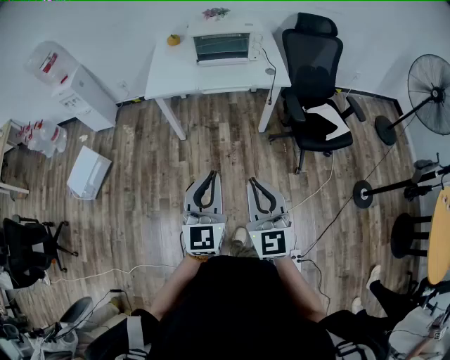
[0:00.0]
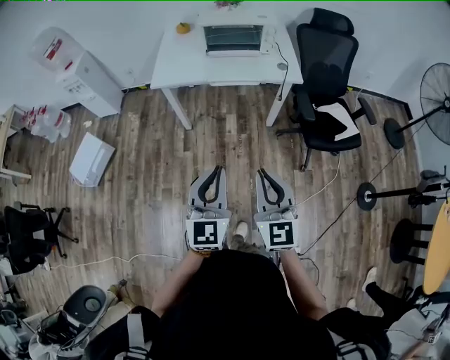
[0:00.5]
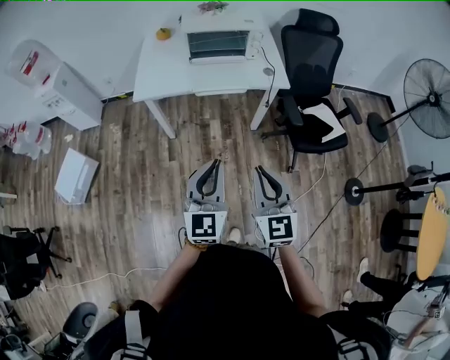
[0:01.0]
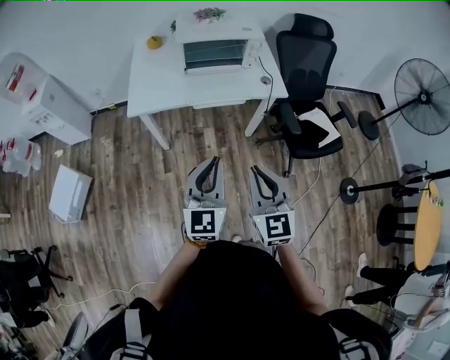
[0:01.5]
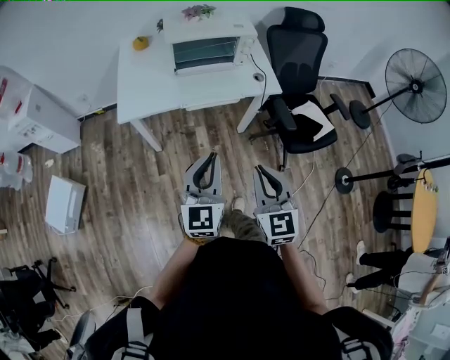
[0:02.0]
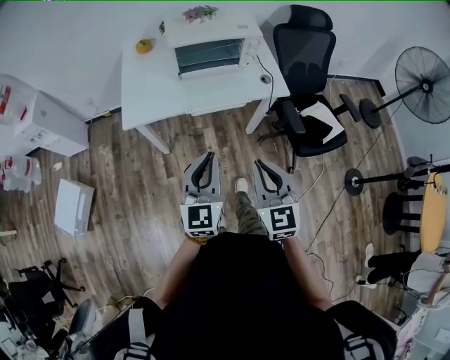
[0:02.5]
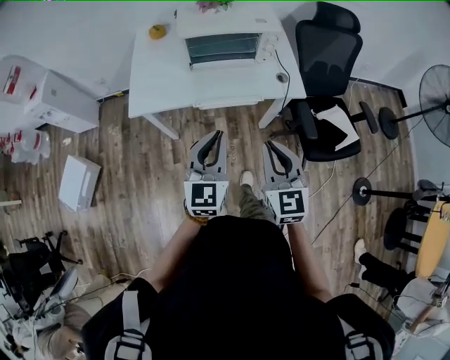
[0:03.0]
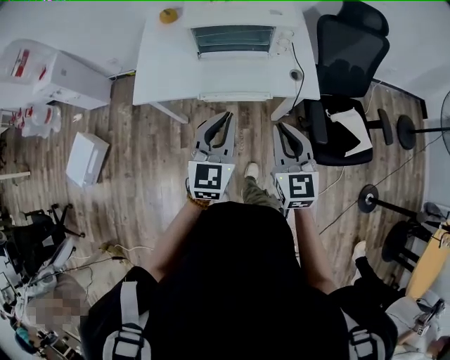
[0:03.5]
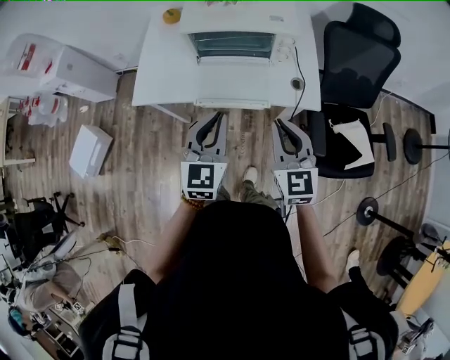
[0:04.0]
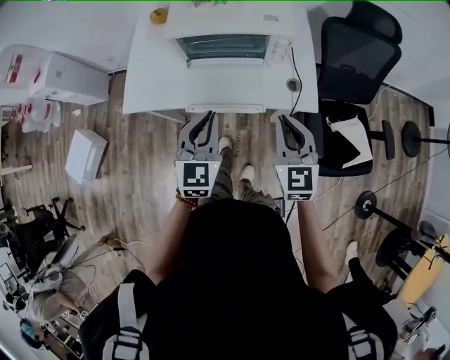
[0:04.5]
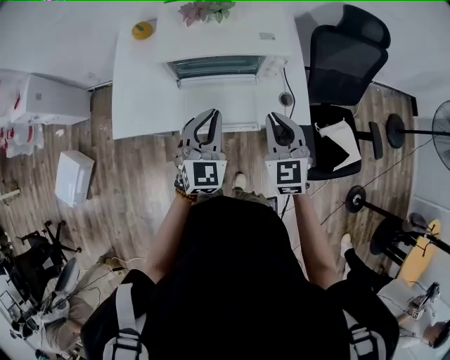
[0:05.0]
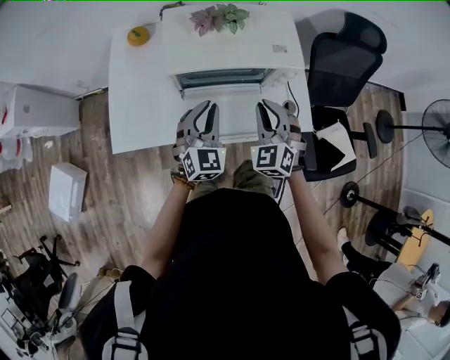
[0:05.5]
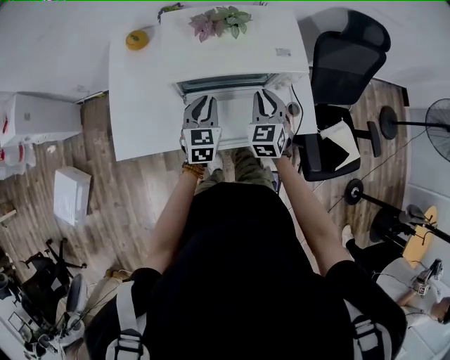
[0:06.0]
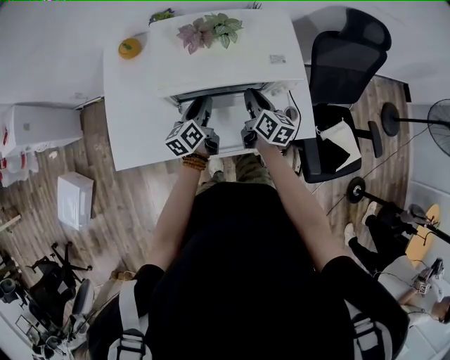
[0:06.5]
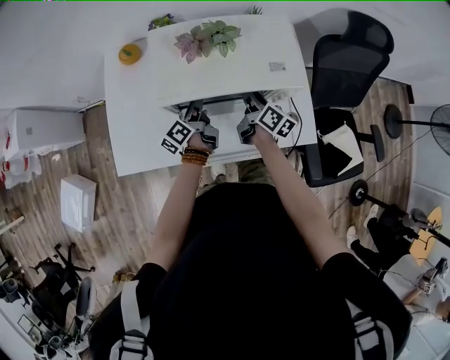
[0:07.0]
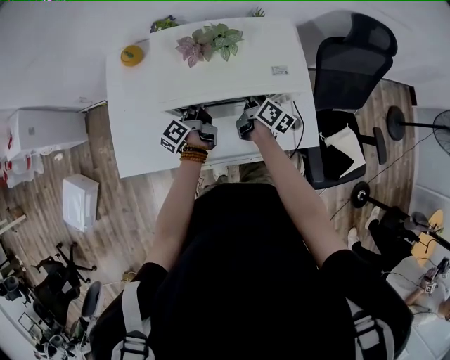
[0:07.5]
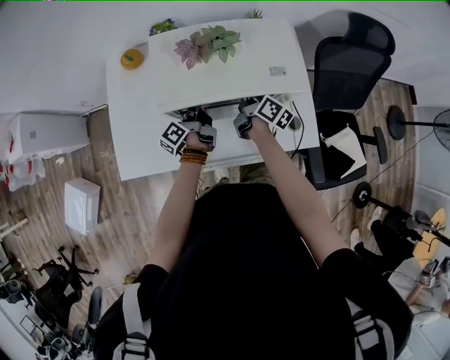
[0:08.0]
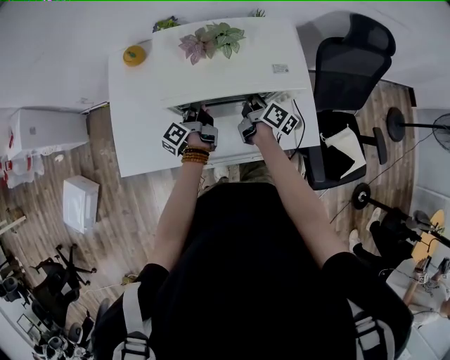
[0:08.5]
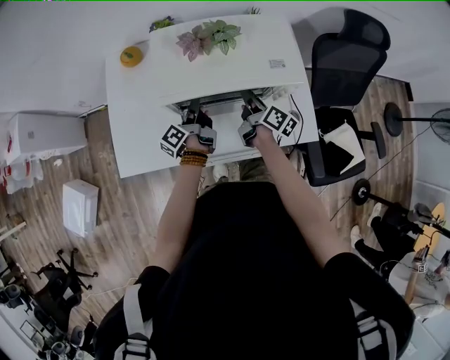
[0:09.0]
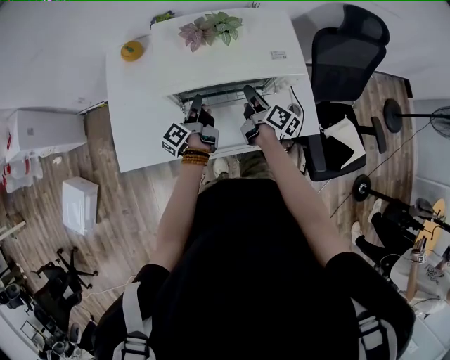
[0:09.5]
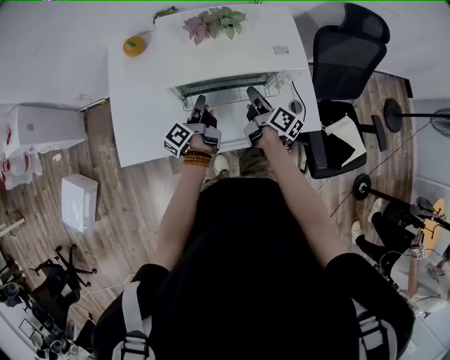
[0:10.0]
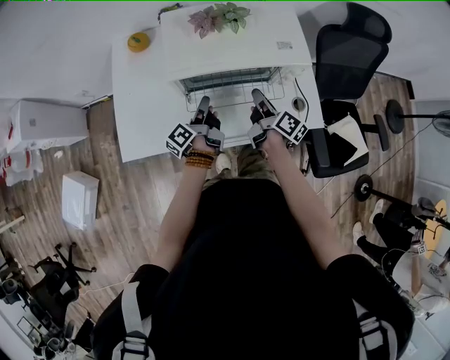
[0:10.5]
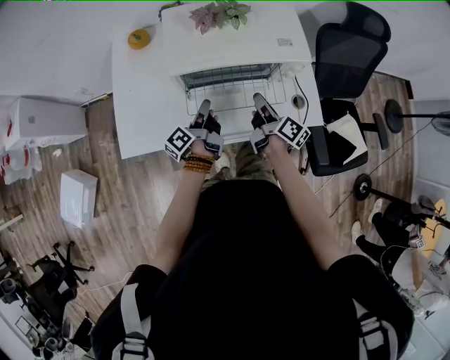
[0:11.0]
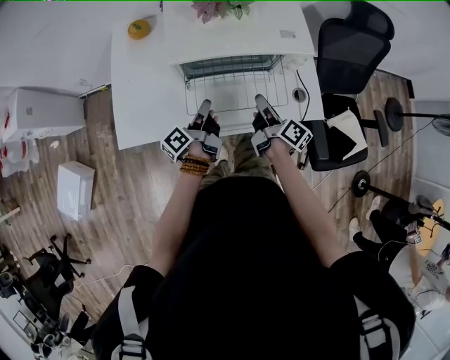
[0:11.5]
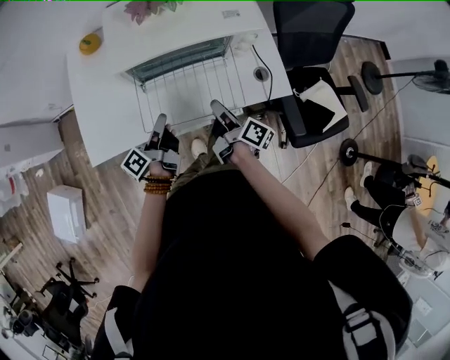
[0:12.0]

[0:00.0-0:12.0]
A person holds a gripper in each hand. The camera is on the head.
0:00.0 to 0:02.0: The grippers both shift forward by approximately 25 cm.
0:02.0 to 0:04.0: Both grippers move forward and to the right, some 30 cm.
0:04.0 to 0:06.0: The two grippers go about 30 cm forward and downward. The right gripper swivels about 30 degrees.
0:06.0 to 0:08.0: The grippers both shift forward and downward by approximately 15 cm. The right gripper rotates around the line of its fingers by about 80 degrees, clockwise from behind. Meanwhile the left gripper rotates around the line of its fingers by about 80 degrees, counterclockwise from behind.
0:08.0 to 0:10.0: Both grippers travel together backward, some 10 cm.
0:10.0 to 0:12.0: The two grippers go some 15 cm backward.

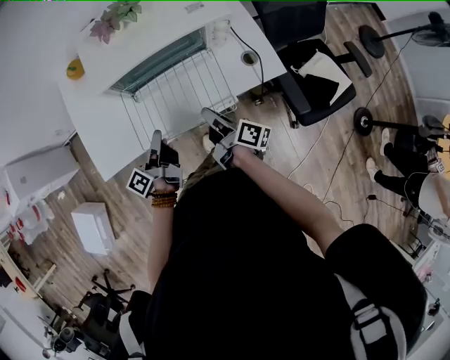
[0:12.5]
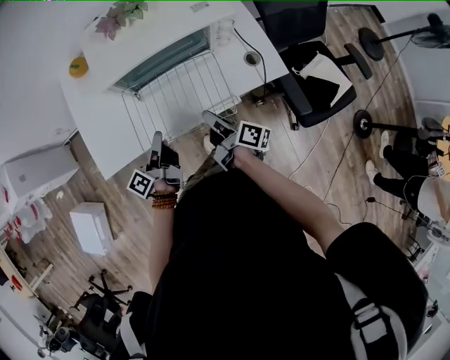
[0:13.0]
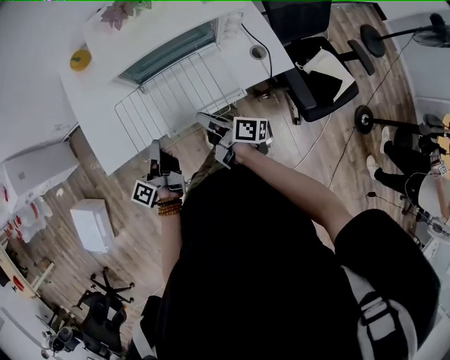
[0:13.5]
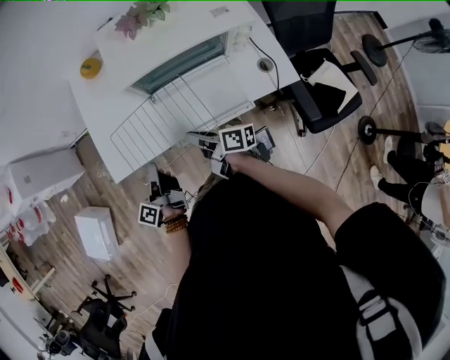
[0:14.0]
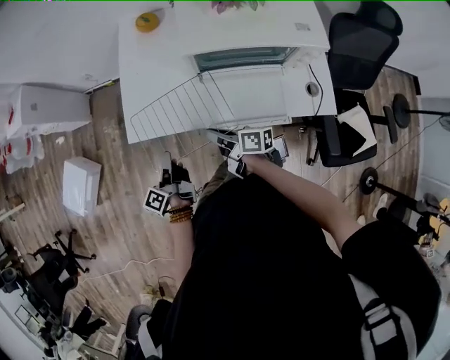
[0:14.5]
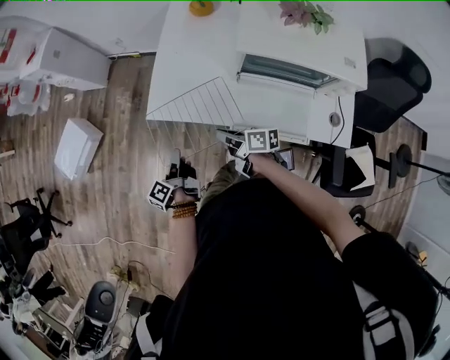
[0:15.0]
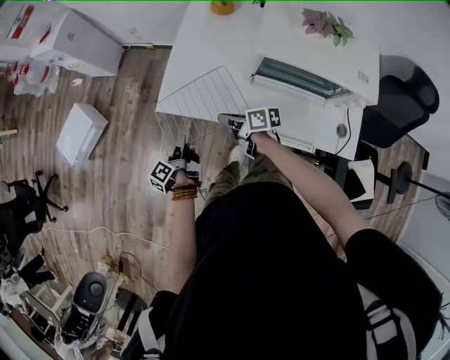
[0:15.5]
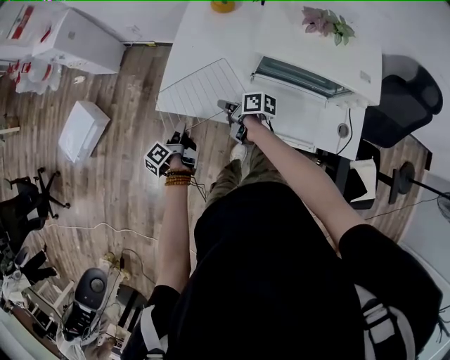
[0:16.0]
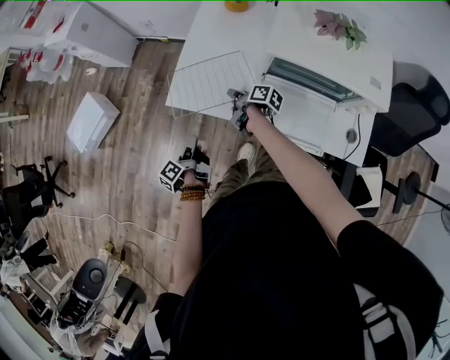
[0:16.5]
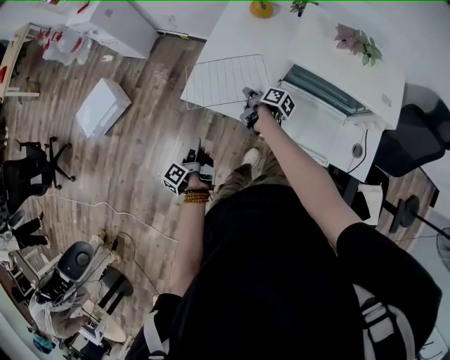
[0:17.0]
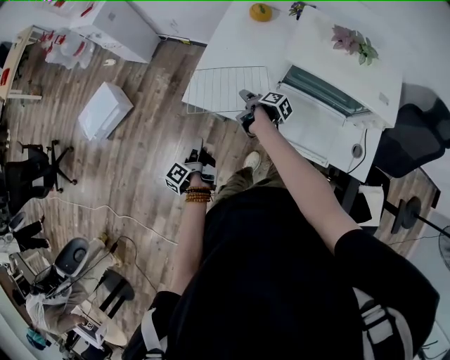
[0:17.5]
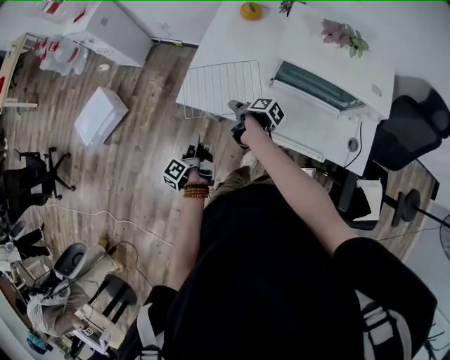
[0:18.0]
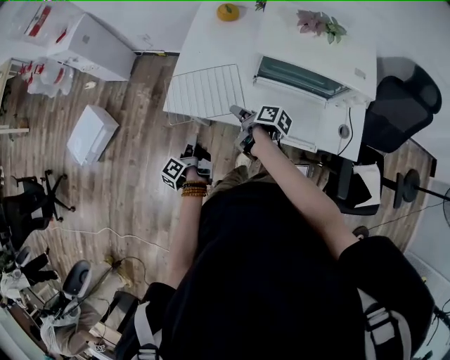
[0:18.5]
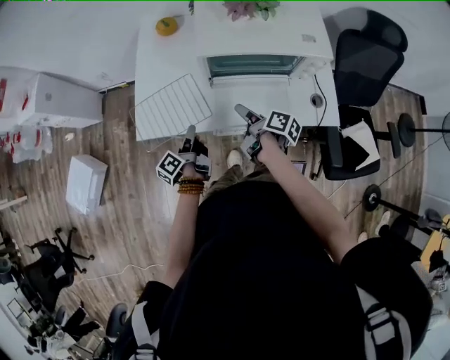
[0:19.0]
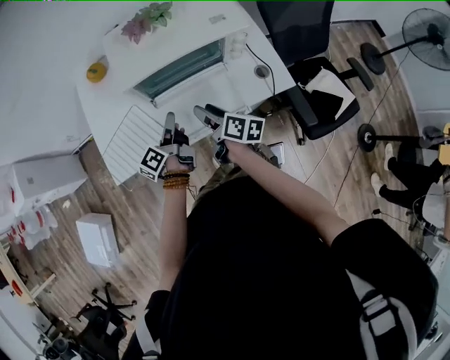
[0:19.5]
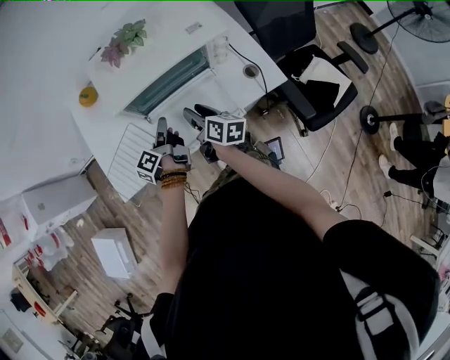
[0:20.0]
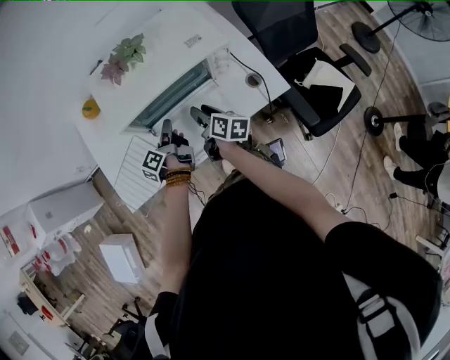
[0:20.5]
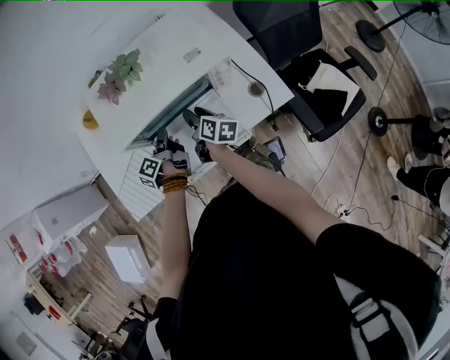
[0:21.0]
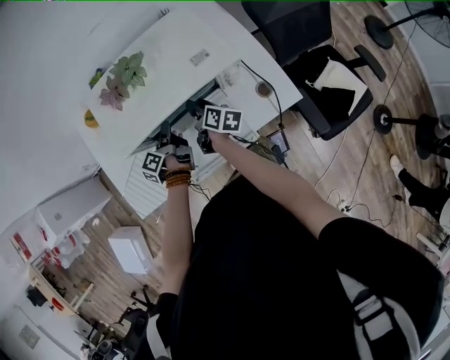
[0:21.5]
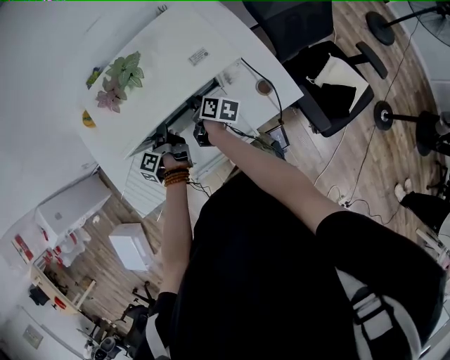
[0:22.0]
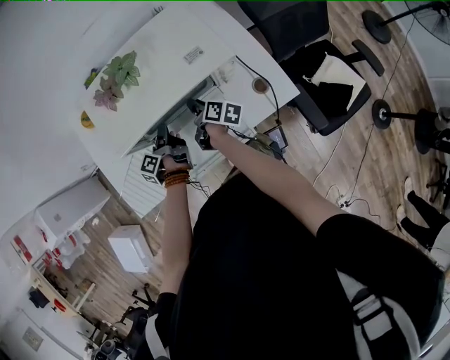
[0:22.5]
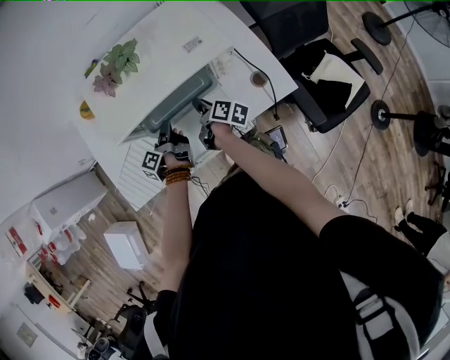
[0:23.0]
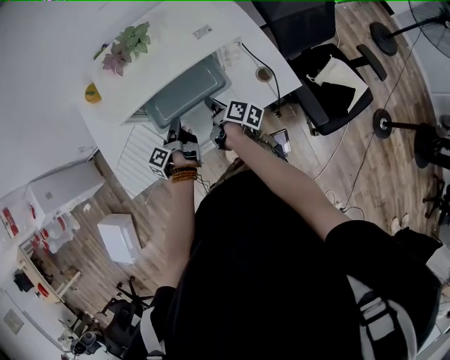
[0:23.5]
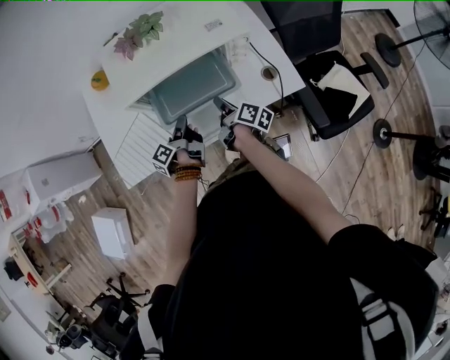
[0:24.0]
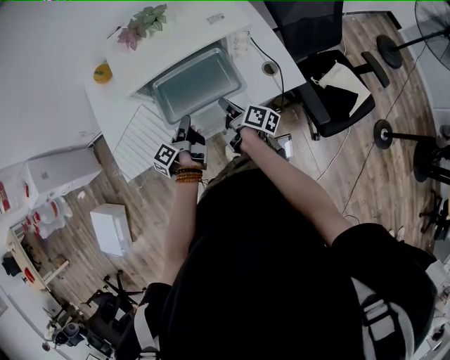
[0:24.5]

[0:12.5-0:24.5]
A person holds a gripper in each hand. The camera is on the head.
0:12.5 to 0:14.5: The right gripper shifts by approximately 20 cm, and swivels approximately 40 degrees; the left gripper moves some 20 cm, and swivels about 30 degrees.
0:14.5 to 0:16.5: The left gripper travels downward and to the left by about 10 cm, and rotates some 20 degrees, while the right gripper goes roughly 20 cm forward and downward, and swivels roughly 20 degrees.
0:16.5 to 0:18.5: The right gripper is displaced backward and upward by approximately 10 cm, and opens its fingers.
0:18.5 to 0:20.5: The right gripper shifts by roughly 25 cm, and swivels approximately 50 degrees. Meanwhile the left gripper shifts by some 35 cm, and turns by approximately 40 degrees.
0:20.5 to 0:22.5: The right gripper moves forward and downward, roughly 10 cm, and closes up. Meanwhile the left gripper shifts roughly 5 cm forward.
0:22.5 to 0:24.5: Both grippers travel together backward, some 15 cm.

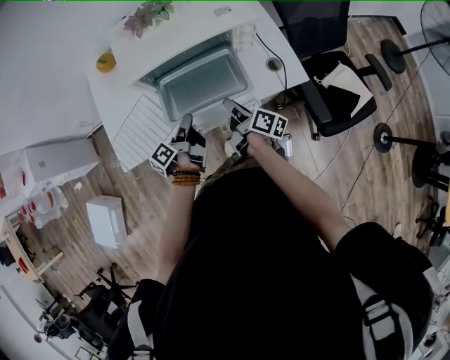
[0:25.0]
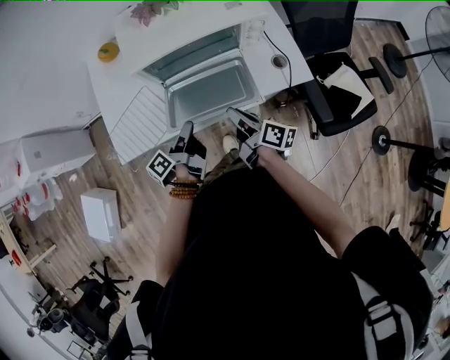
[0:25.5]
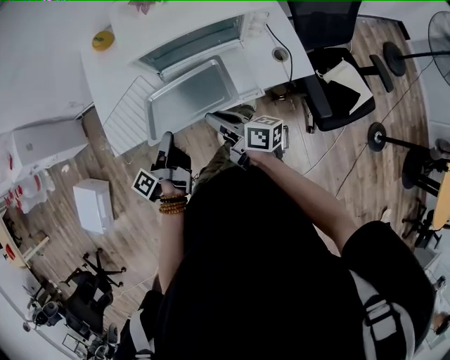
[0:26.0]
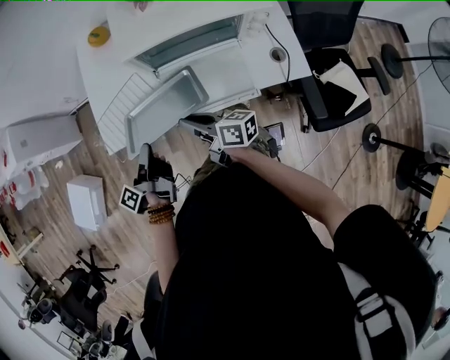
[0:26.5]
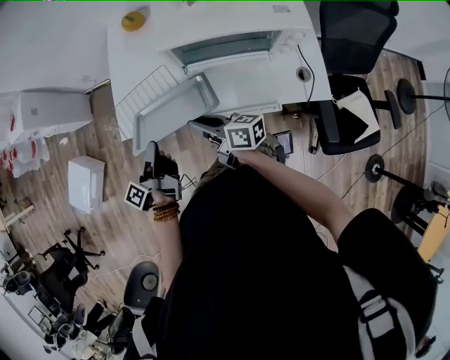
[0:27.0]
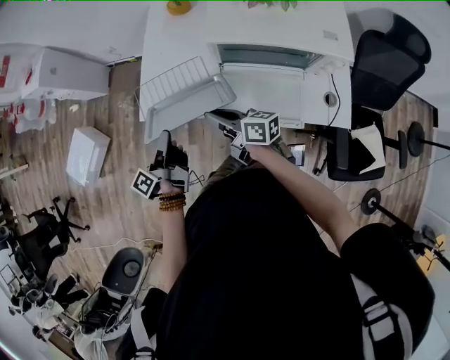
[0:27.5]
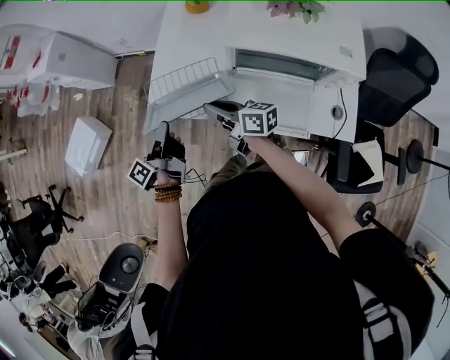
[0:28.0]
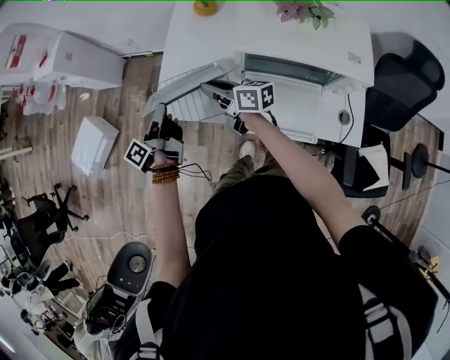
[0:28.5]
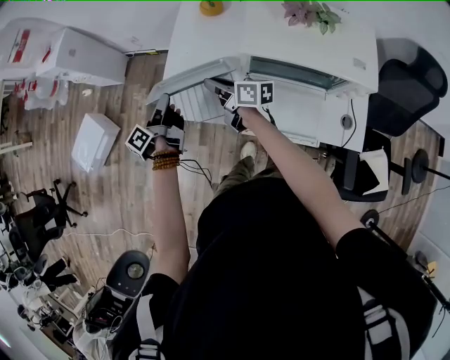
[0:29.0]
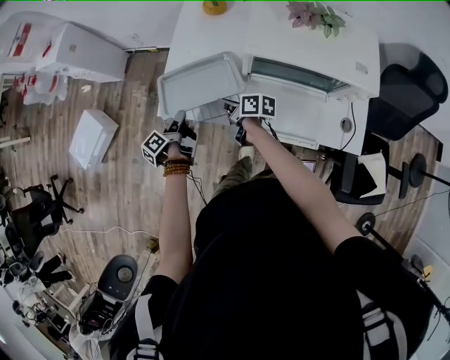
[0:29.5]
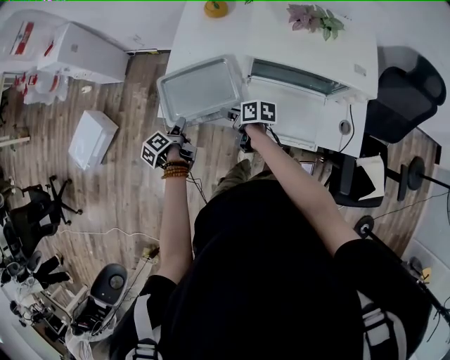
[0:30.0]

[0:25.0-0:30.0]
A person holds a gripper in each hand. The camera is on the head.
0:25.0 to 0:27.5: The right gripper shifts by about 25 cm, and swivels roughly 60 degrees, while the left gripper moves about 25 cm, and rotates some 30 degrees.
0:27.5 to 0:30.0: Both grippers travel together downward and forward, about 15 cm. The right gripper swivels approximately 30 degrees, and opens its fingers, while the left gripper points its fingers some 30 degrees further downward, and opens.
